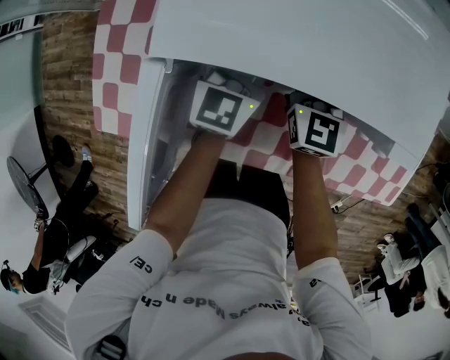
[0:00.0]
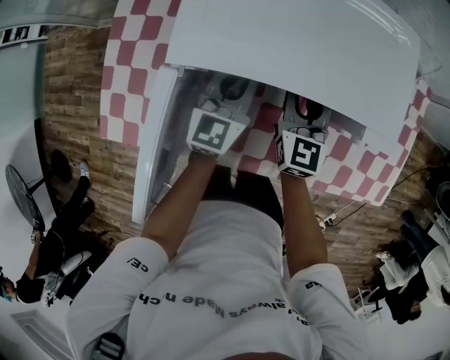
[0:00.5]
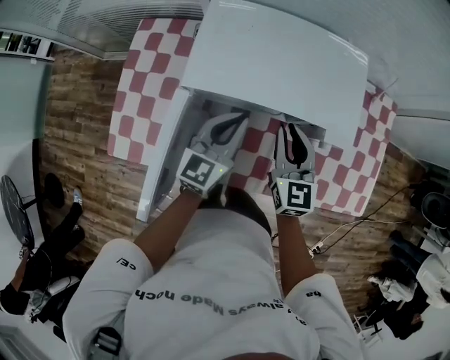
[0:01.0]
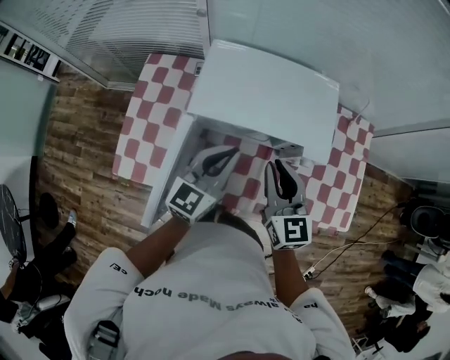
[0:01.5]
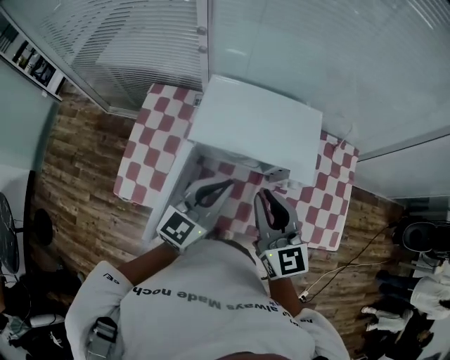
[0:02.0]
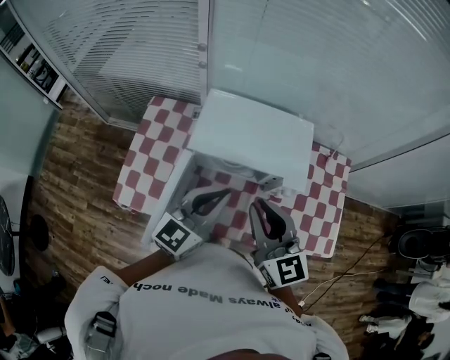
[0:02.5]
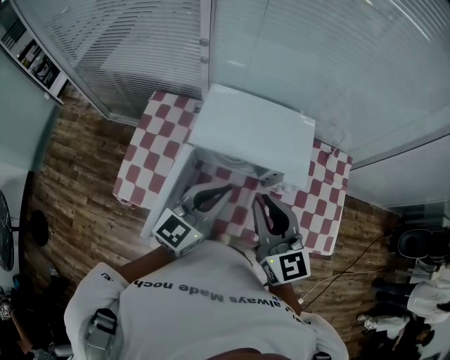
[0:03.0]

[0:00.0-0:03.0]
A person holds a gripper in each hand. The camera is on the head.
0:00.0 to 0:01.5: Both grippers move upward and backward, some 30 cm.
0:01.5 to 0:03.0: Both grippers move upward and backward, approximately 15 cm.

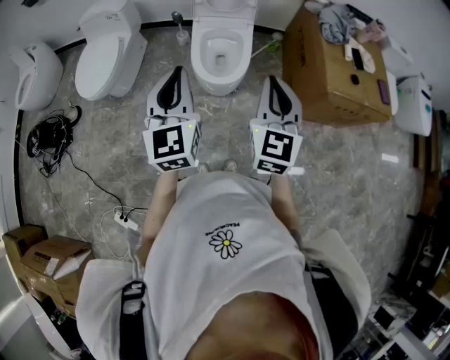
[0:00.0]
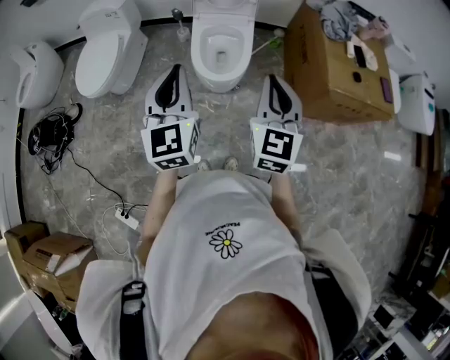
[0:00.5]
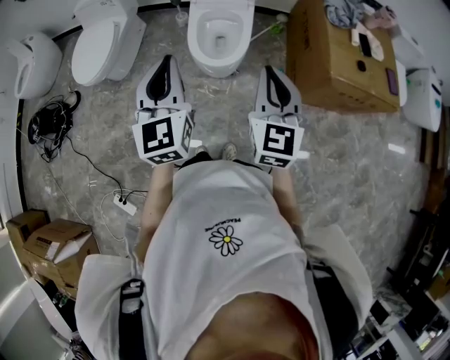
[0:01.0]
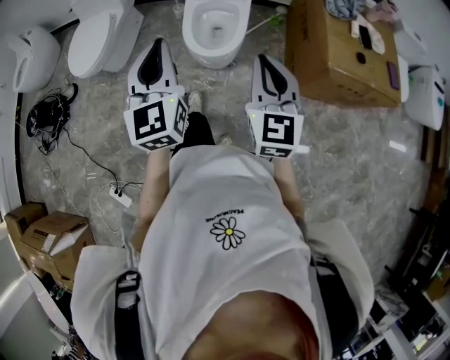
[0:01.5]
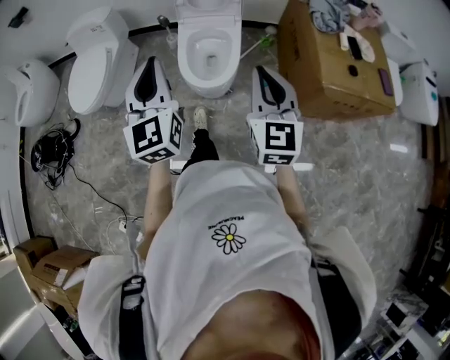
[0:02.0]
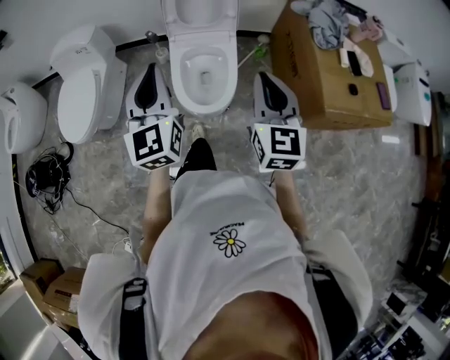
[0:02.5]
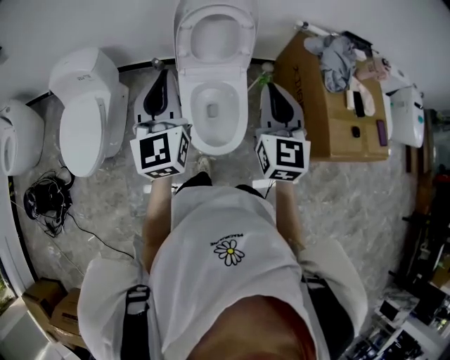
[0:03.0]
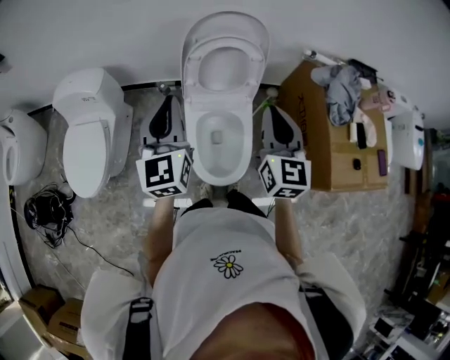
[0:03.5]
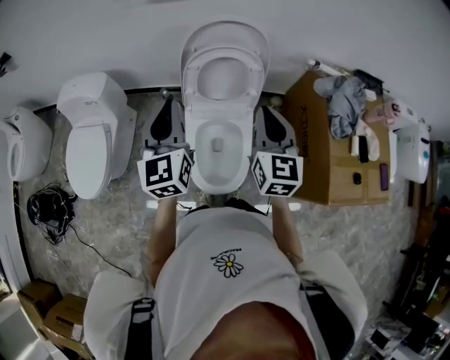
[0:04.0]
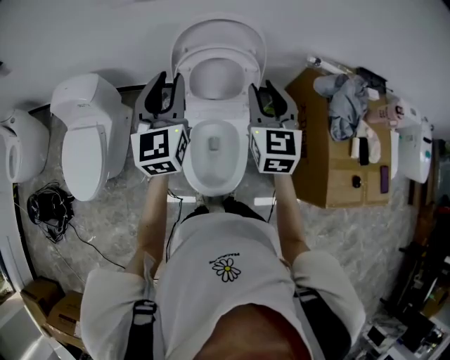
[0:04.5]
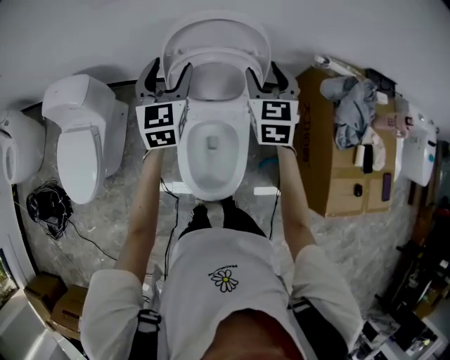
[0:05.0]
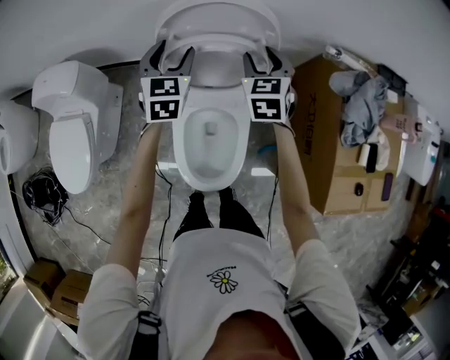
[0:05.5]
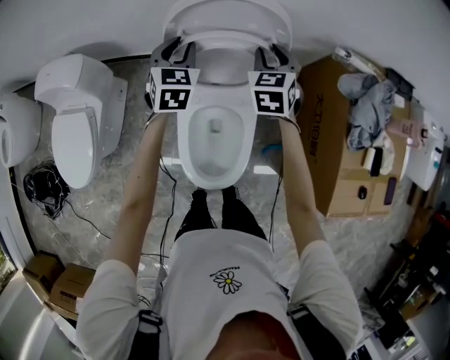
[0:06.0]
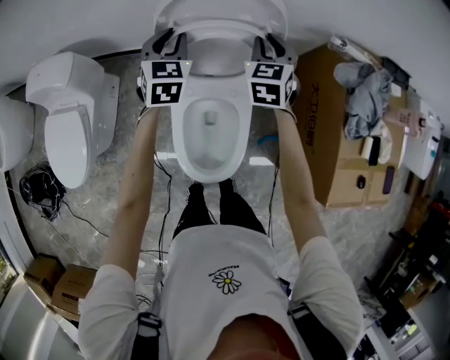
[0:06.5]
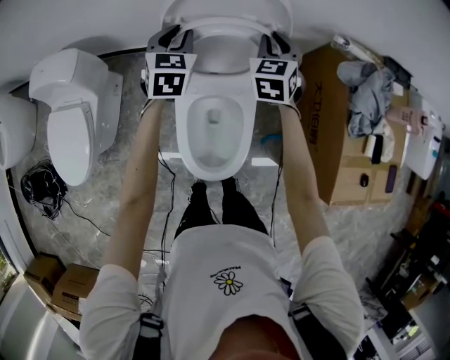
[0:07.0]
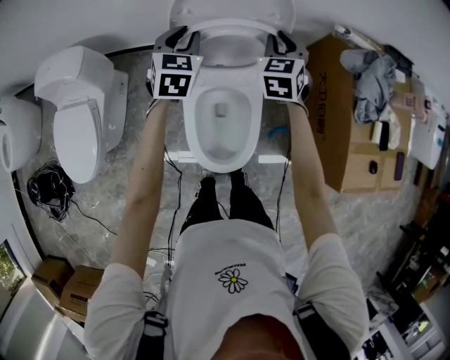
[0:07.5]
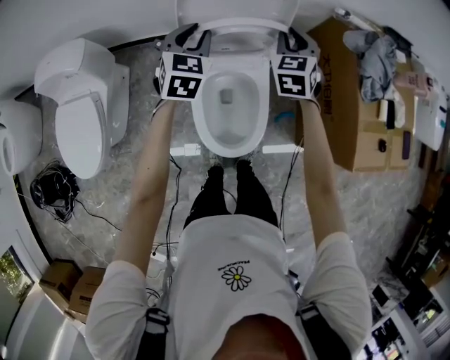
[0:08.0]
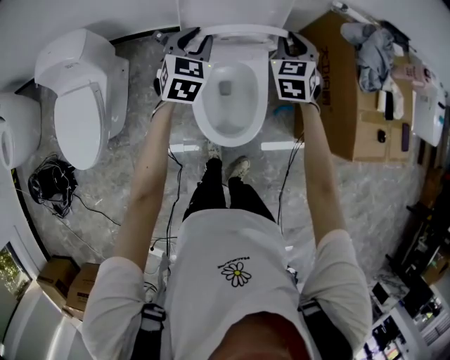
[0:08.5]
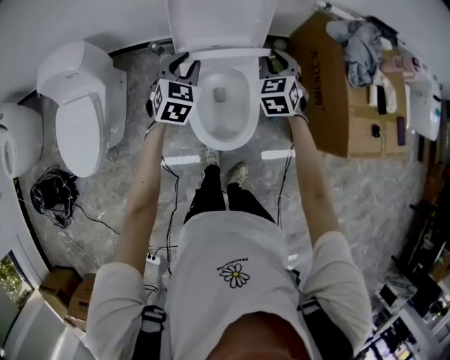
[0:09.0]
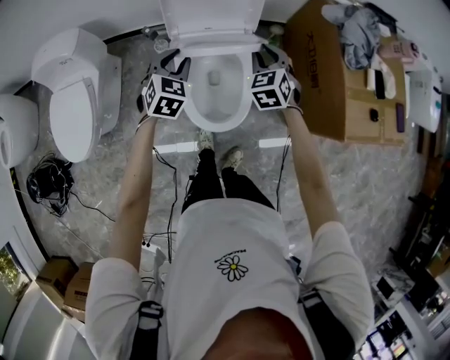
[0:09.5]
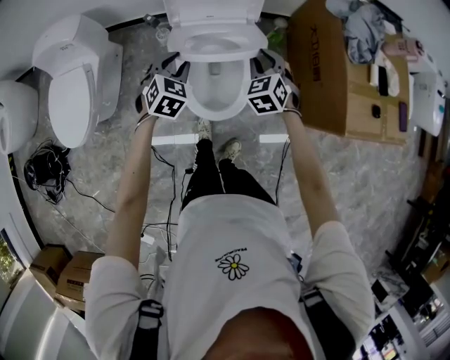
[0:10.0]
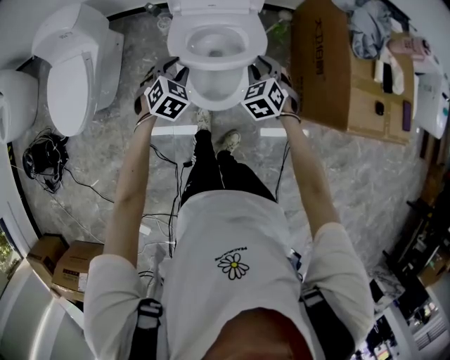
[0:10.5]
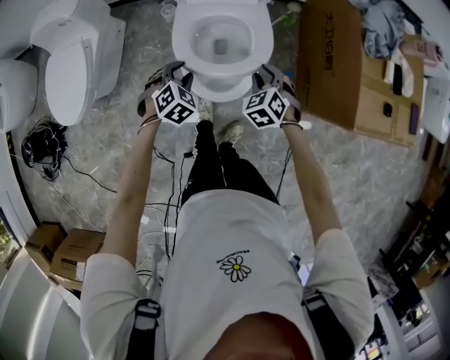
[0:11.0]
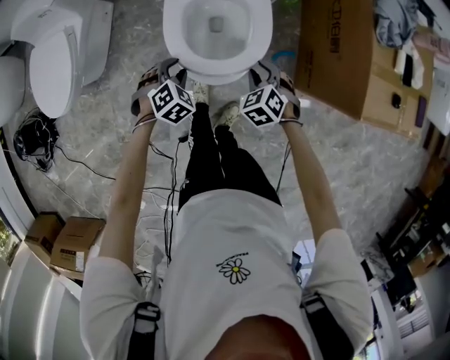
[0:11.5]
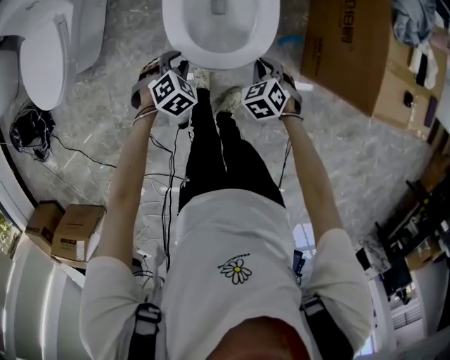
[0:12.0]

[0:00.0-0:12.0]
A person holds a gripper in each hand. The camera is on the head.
0:00.0 to 0:02.0: The right gripper moves roughly 5 cm; the left gripper goes some 5 cm forward.
0:02.0 to 0:04.0: The pair of grippers is taken forward, approximately 40 cm.
0:04.0 to 0:06.0: Both grippers travel together forward and downward, some 35 cm. The left gripper swivels about 30 degrees, and opens and closes again, while the right gripper swivels about 30 degrees, and opens its fingers.
0:06.0 to 0:08.0: The two grippers go roughly 10 cm backward.
0:08.0 to 0:10.0: The two grippers go about 25 cm backward and downward. The left gripper swivels approximately 20 degrees.
0:10.0 to 0:12.0: Both grippers move downward and backward, about 25 cm. The left gripper turns by approximately 30 degrees. The right gripper turns by roughly 20 degrees.

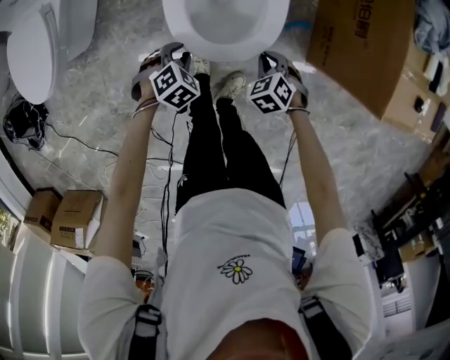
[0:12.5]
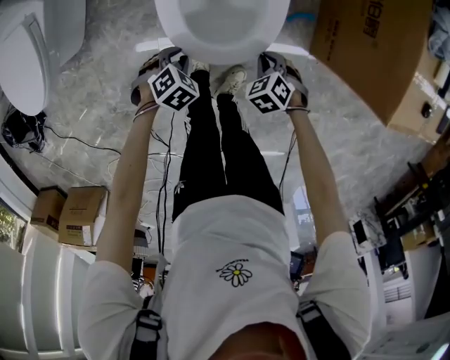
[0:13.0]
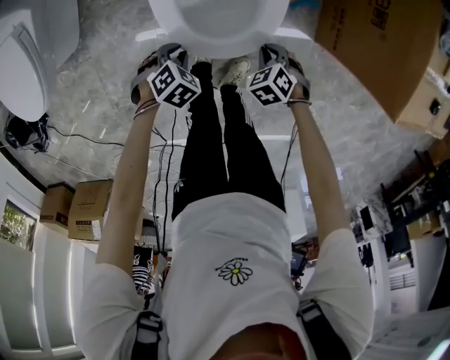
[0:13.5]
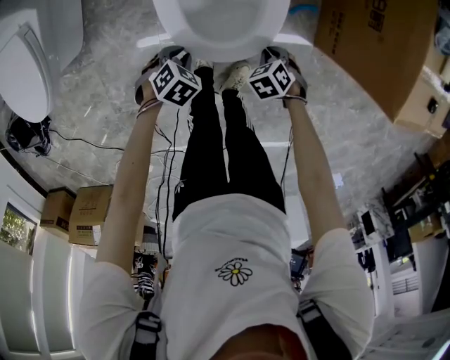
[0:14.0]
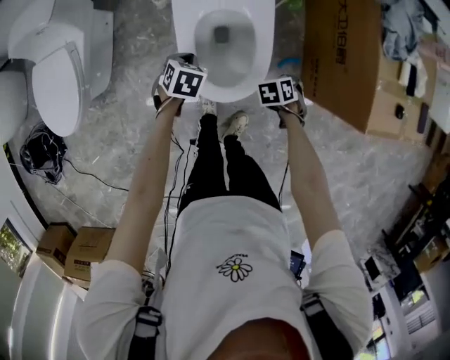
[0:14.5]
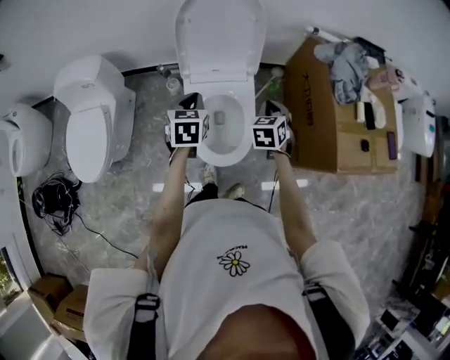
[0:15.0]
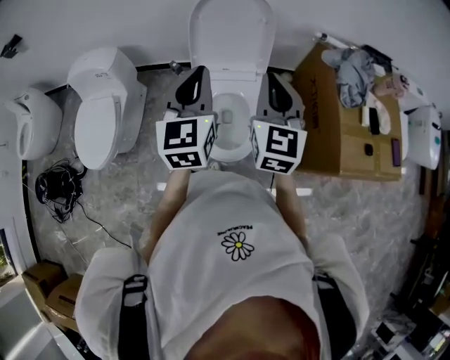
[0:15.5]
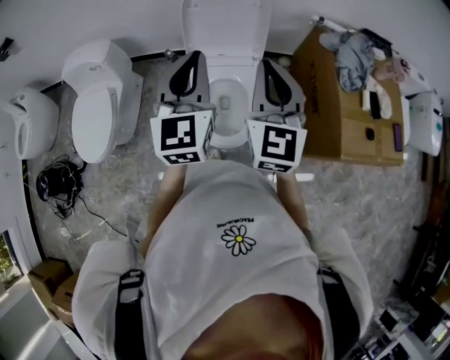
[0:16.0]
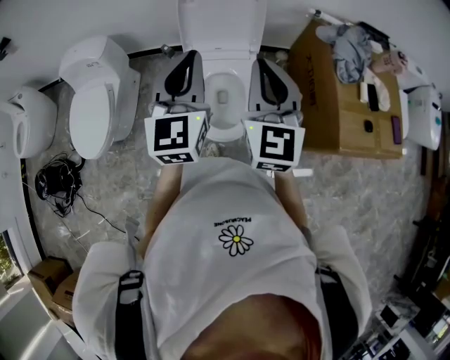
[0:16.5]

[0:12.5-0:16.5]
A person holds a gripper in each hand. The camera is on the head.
0:12.5 to 0:14.5: The left gripper moves approximately 15 cm, swivels some 30 degrees, and closes. The right gripper moves roughly 10 cm downward and comes back, and swivels about 30 degrees.
0:14.5 to 0:16.5: The two grippers go some 50 cm upward. The right gripper angles its fingers upward, by roughly 70 degrees. The left gripper angles its fingers upward, by some 70 degrees.

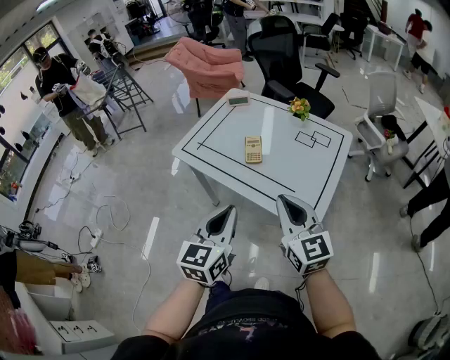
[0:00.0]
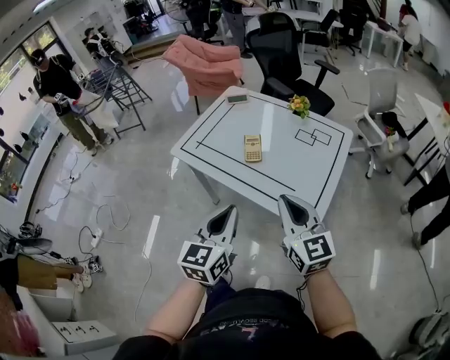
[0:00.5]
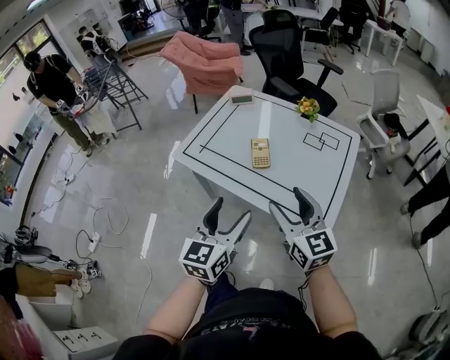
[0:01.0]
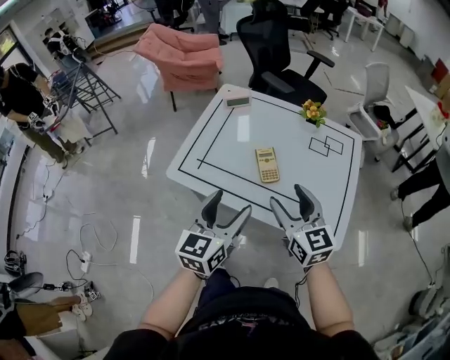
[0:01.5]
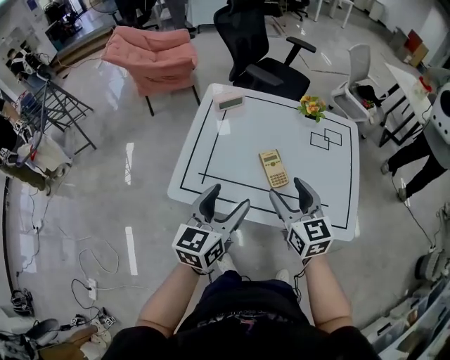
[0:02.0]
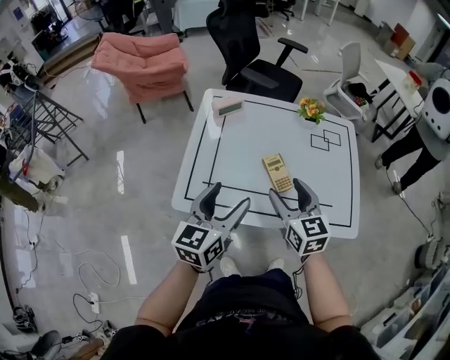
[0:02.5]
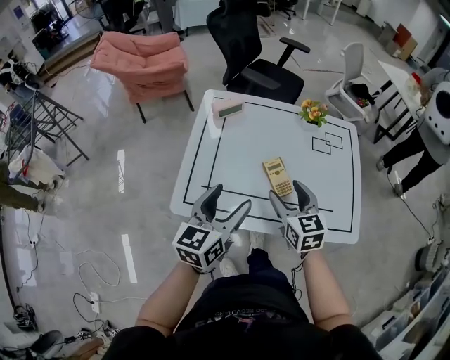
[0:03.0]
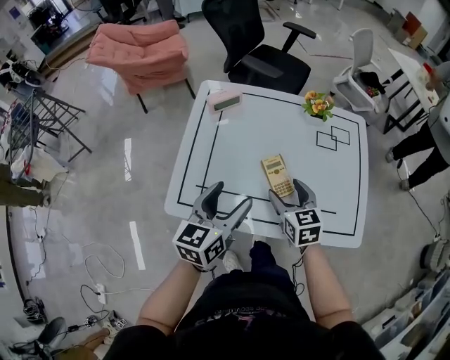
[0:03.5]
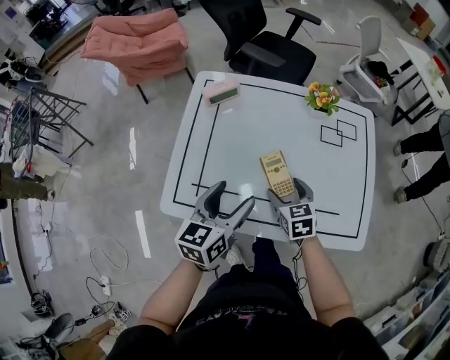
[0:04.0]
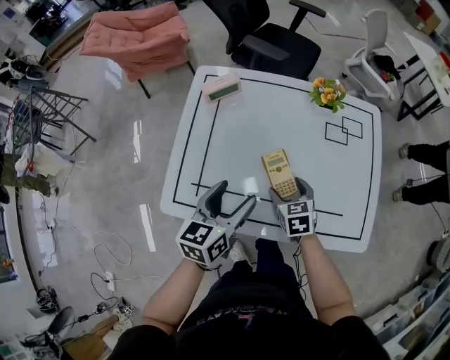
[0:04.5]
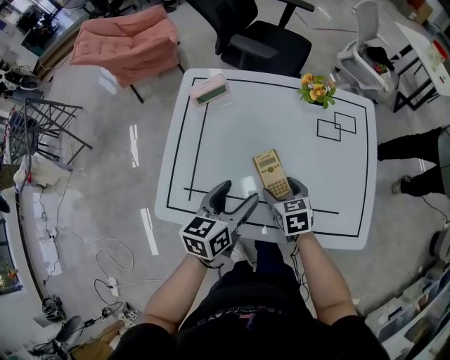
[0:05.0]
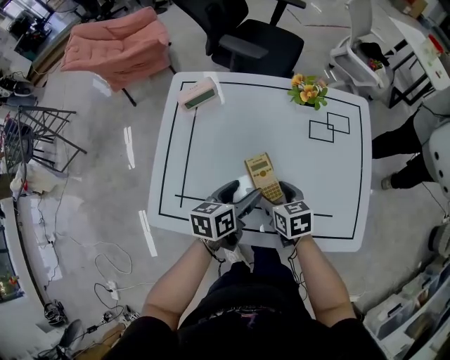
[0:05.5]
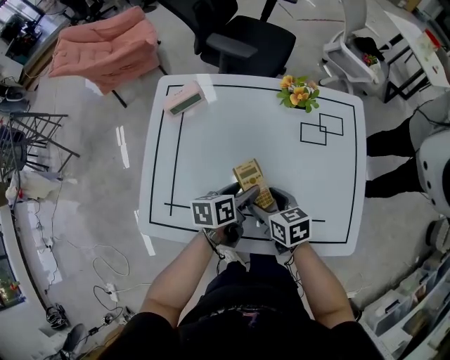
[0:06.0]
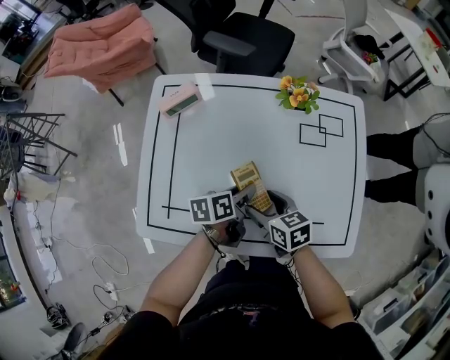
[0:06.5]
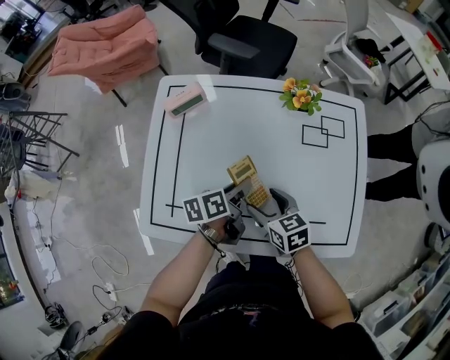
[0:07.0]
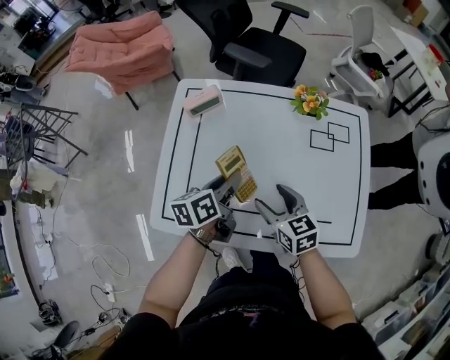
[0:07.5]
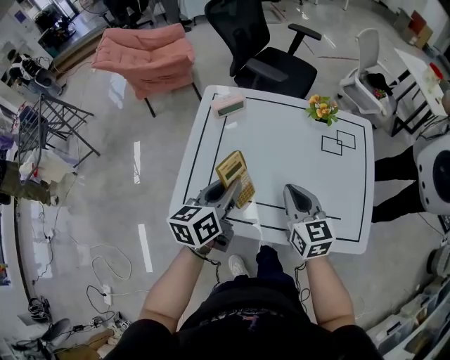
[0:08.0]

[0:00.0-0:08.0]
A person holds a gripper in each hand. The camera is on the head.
0:00.0 to 0:02.0: Both grippers move forward and to the left, roughly 30 cm. The left gripper rotates approximately 30 degrees, and opens its fingers. Meanwhile the right gripper swivels some 30 degrees, and opens up.
0:02.0 to 0:04.0: The right gripper goes about 20 cm downward and forward, and turns by roughly 30 degrees, while the left gripper goes approximately 10 cm forward and downward.
0:04.0 to 0:06.0: The left gripper goes about 20 cm downward, to the right and forward, and rotates about 30 degrees. Meanwhile the right gripper rotates some 20 degrees.
0:06.0 to 0:08.0: The left gripper travels upward and to the left by roughly 25 cm, swivels roughly 30 degrees, and closes up, while the right gripper shifts about 15 cm upward, turns by approximately 30 degrees, and closes its fingers.
